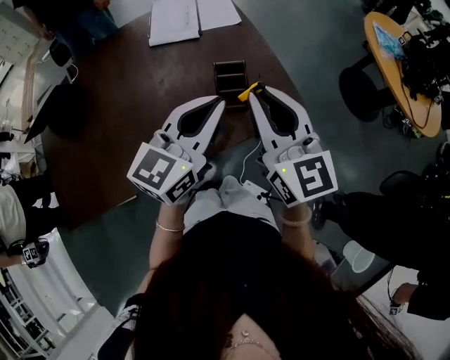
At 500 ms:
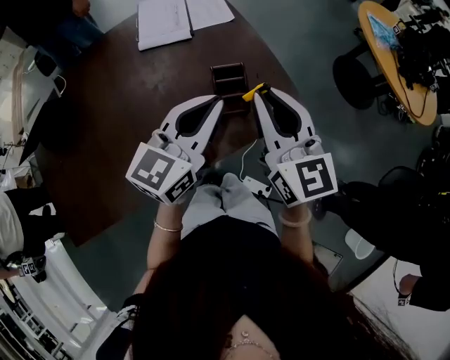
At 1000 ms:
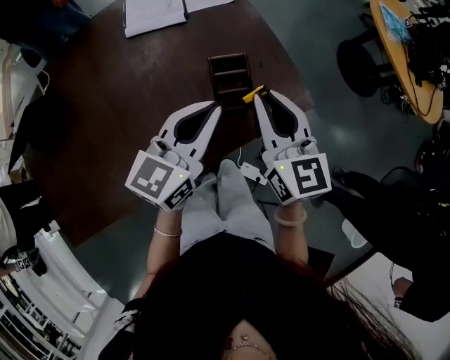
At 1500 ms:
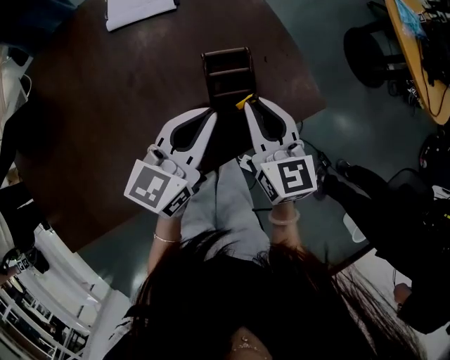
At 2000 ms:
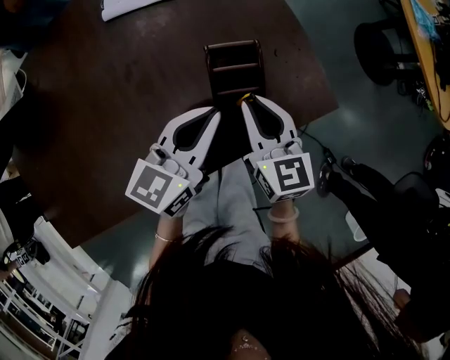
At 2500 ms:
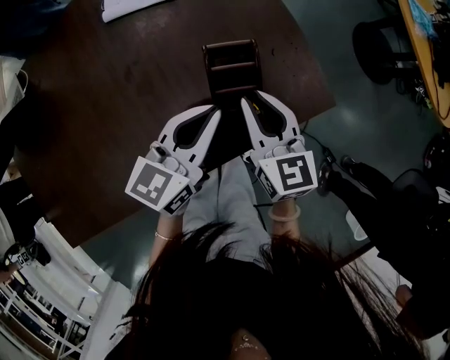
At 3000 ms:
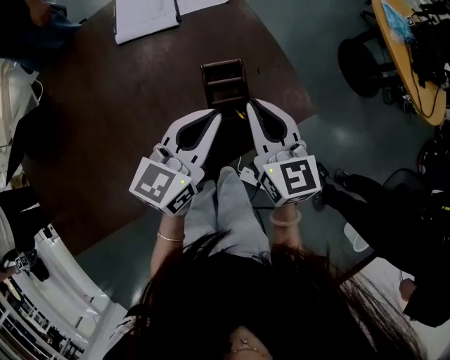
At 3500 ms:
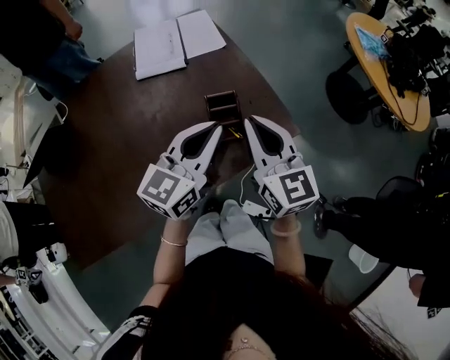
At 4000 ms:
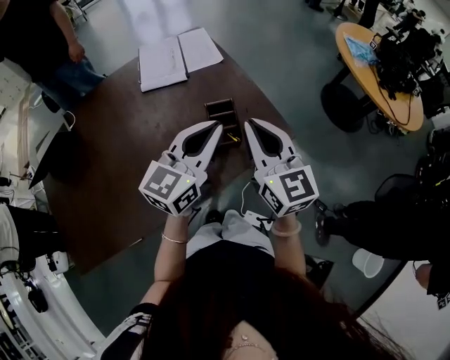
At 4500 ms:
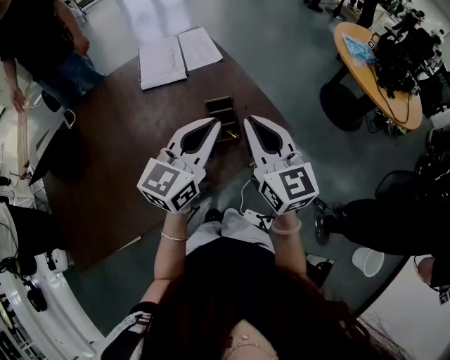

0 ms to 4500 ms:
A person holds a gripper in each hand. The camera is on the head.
0 ms to 2000 ms: The left gripper travels downward and forward by roughly 20 cm. Meanwhile the right gripper heads downward, covering some 25 cm, and turns by some 20 degrees.
2000 ms to 4500 ms: The two grippers go some 20 cm upward. The left gripper turns by some 20 degrees. Meanwhile the right gripper changes its angle by roughly 20 degrees.

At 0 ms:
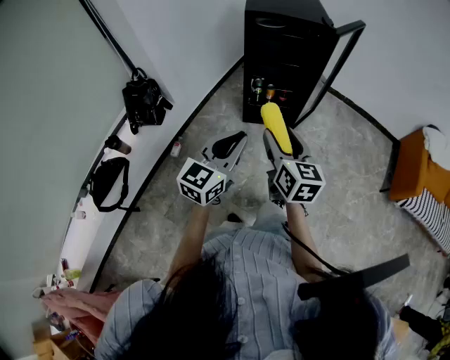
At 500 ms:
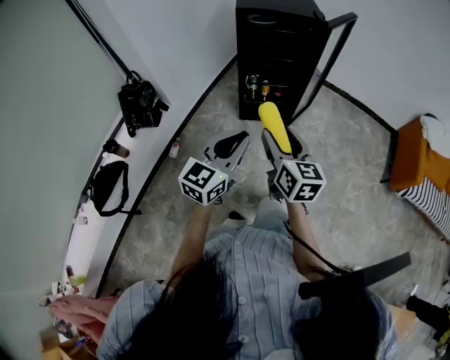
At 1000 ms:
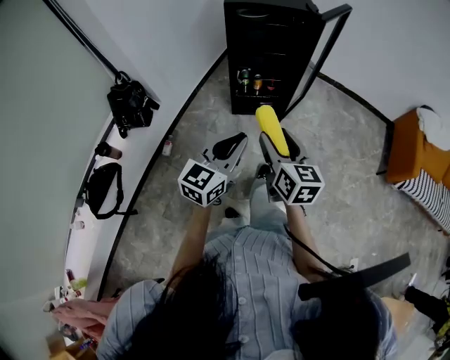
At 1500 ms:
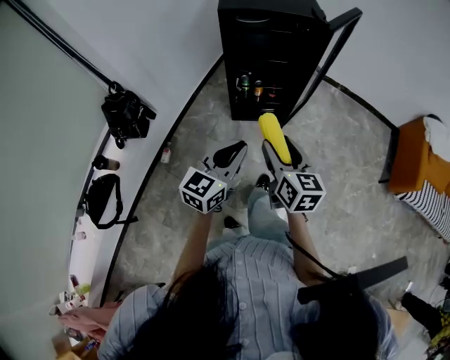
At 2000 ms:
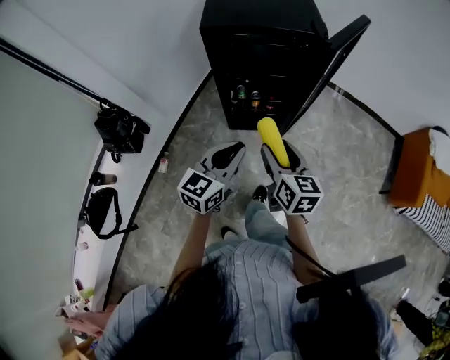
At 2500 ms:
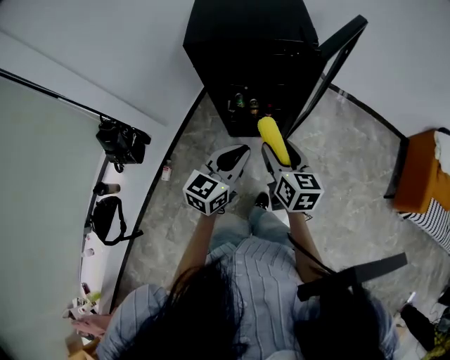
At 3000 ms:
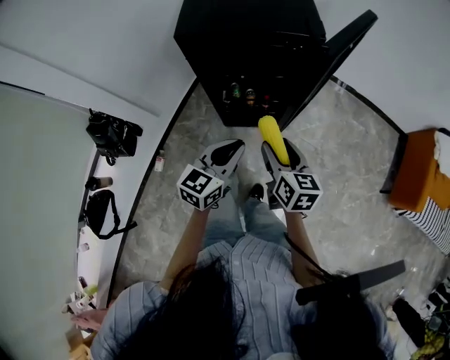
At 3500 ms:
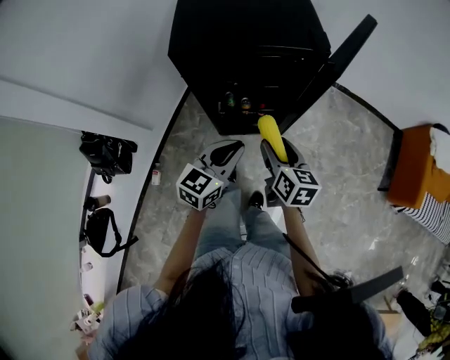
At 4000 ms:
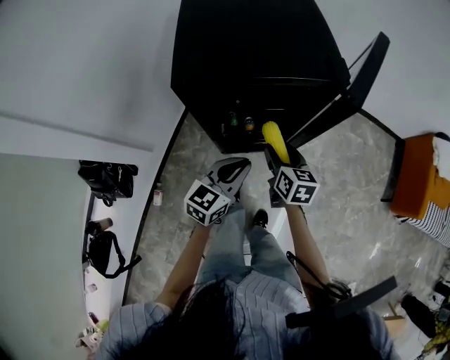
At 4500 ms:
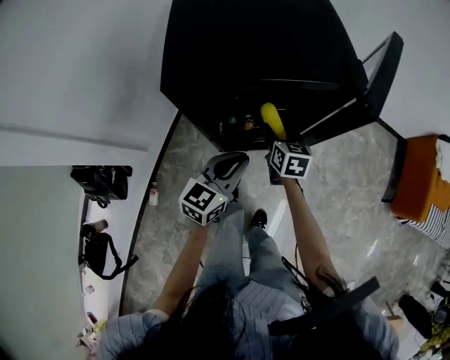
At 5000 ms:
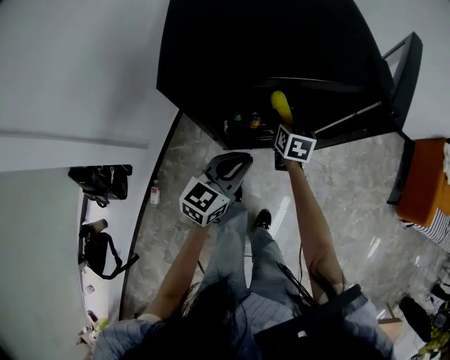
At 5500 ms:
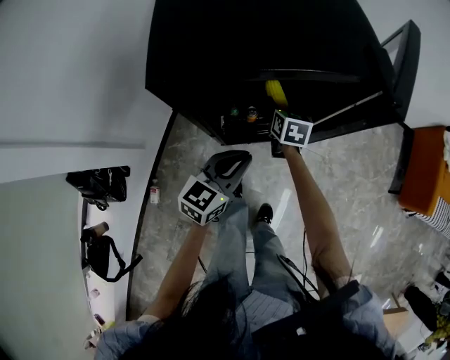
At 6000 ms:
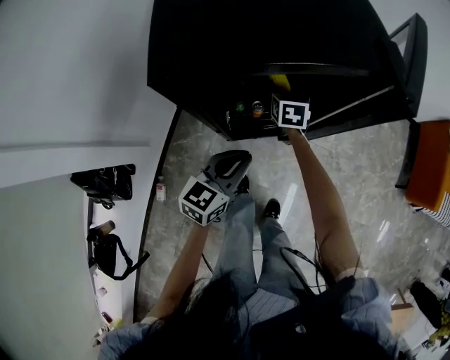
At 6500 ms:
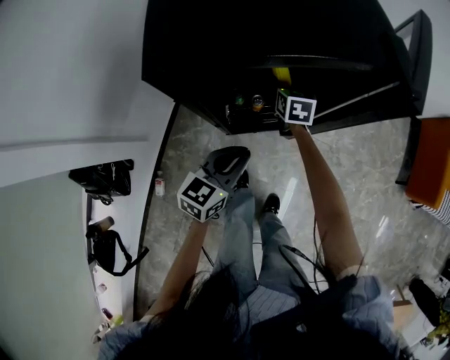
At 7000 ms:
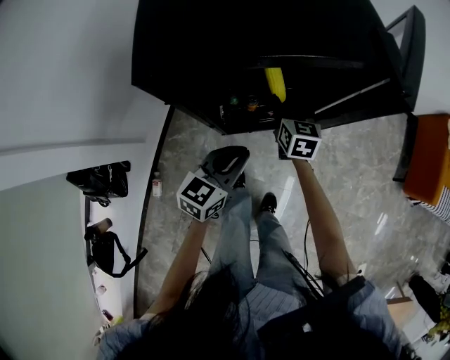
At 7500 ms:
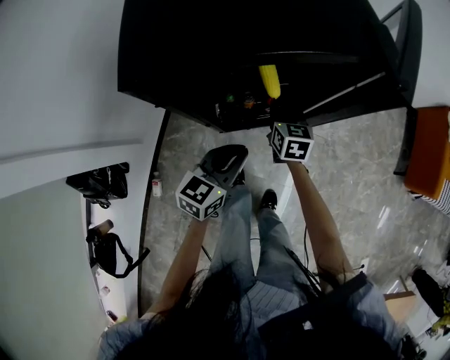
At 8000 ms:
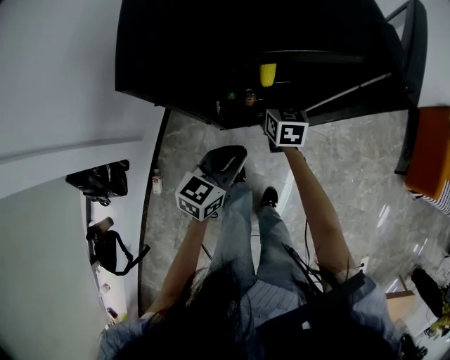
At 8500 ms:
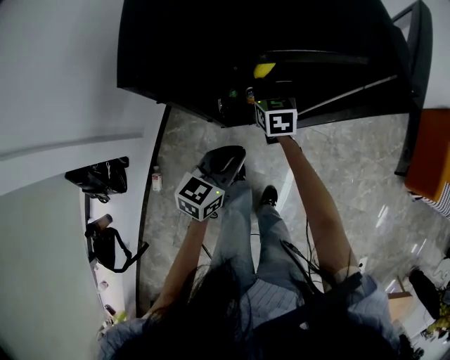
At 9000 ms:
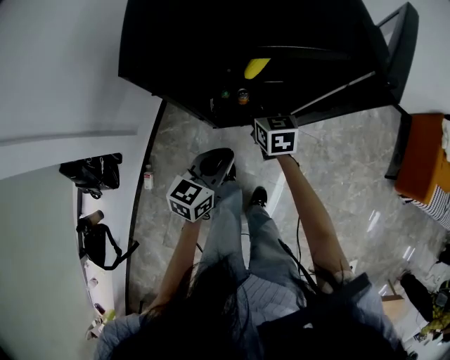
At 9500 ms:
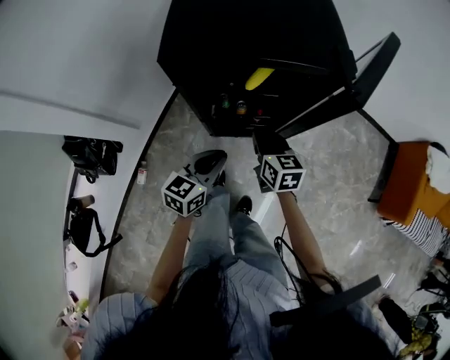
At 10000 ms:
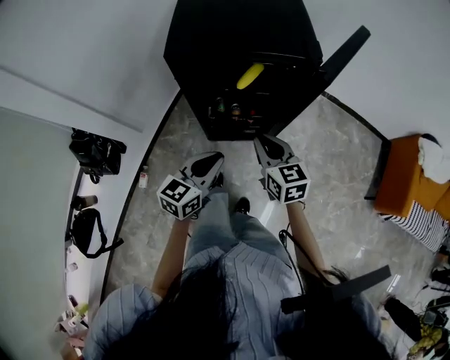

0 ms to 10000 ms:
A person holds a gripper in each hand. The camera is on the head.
0 ms to 2000 ms: Both grippers travel together forward, roughly 25 cm.
2000 ms to 4000 ms: The grippers both shift forward and downward by some 25 cm.
4000 ms to 6000 ms: The right gripper moves forward, downward and to the left, approximately 25 cm. The left gripper goes roughly 10 cm downward.
6000 ms to 8000 ms: The right gripper heads backward, covering approximately 5 cm, and closes.
8000 ms to 10000 ms: The right gripper travels backward and upward by approximately 30 cm, and rotates some 20 degrees. The left gripper moves upward and backward, roughly 20 cm.

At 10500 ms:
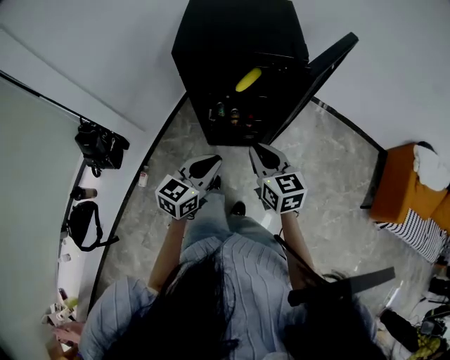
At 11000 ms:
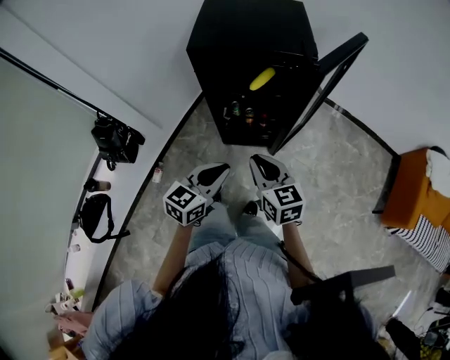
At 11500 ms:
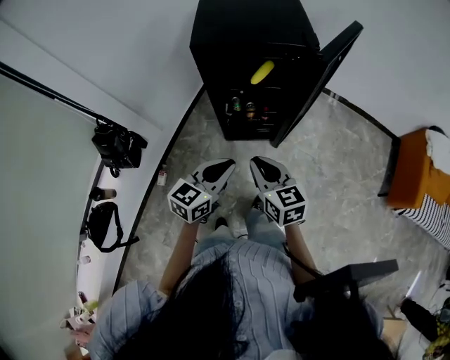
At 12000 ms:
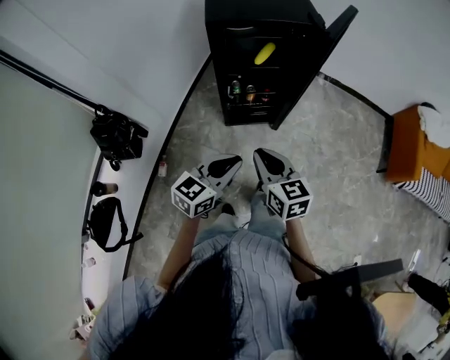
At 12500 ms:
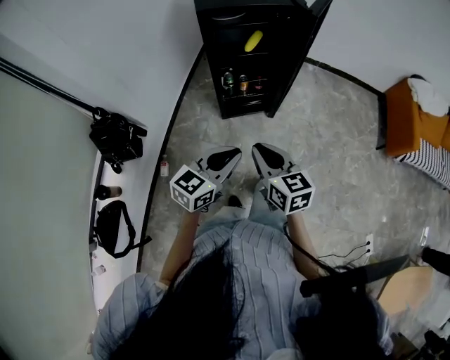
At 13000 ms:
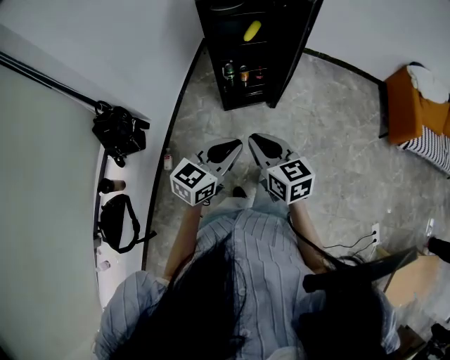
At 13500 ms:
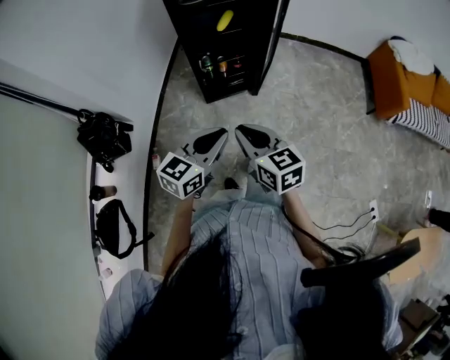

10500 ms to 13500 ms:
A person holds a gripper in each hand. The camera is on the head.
10500 ms to 12000 ms: The grippers both shift backward and to the left by roughly 20 cm.
12000 ms to 13500 ms: The two grippers go some 10 cm backward.

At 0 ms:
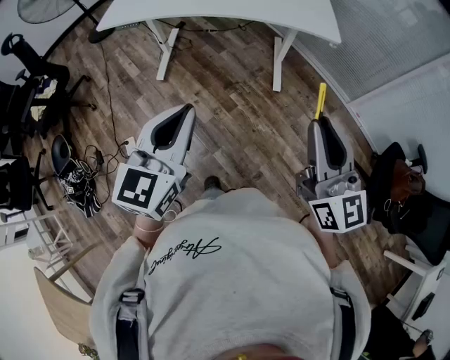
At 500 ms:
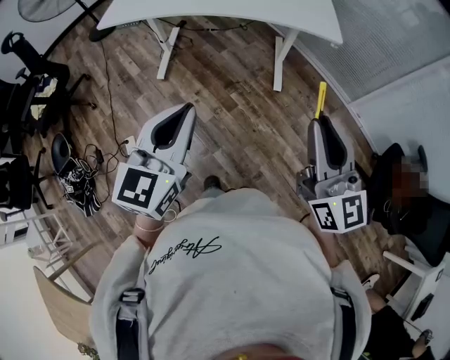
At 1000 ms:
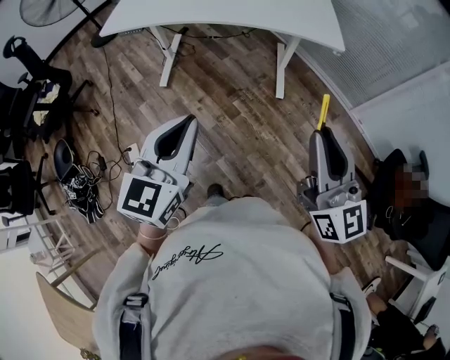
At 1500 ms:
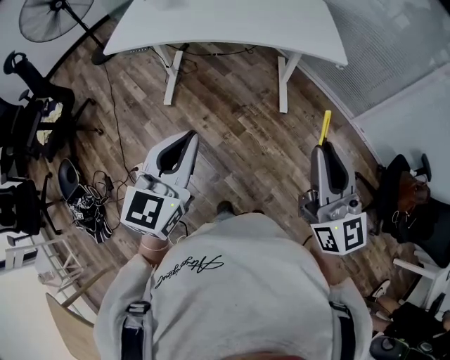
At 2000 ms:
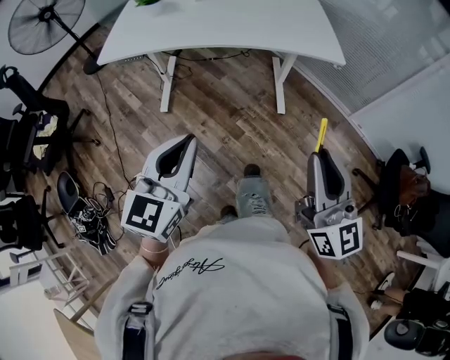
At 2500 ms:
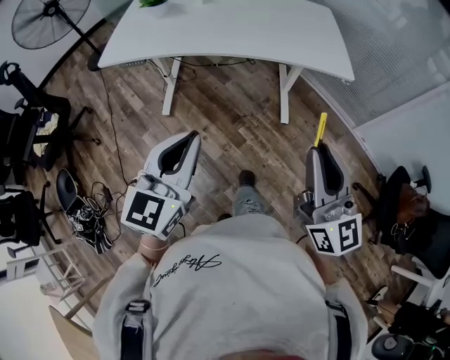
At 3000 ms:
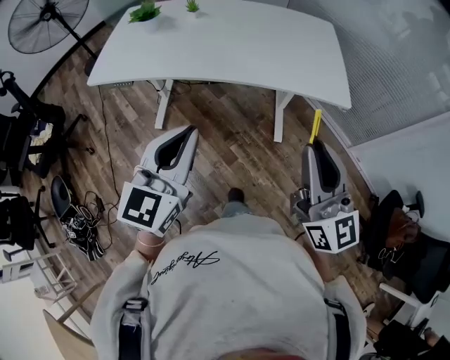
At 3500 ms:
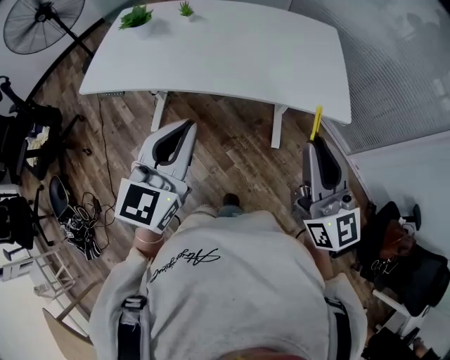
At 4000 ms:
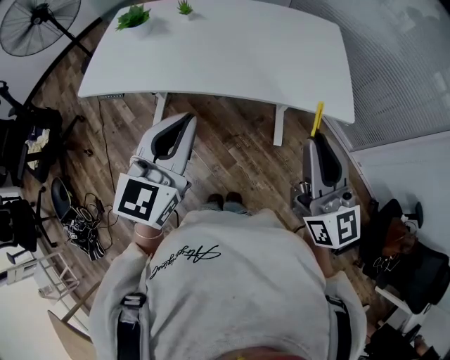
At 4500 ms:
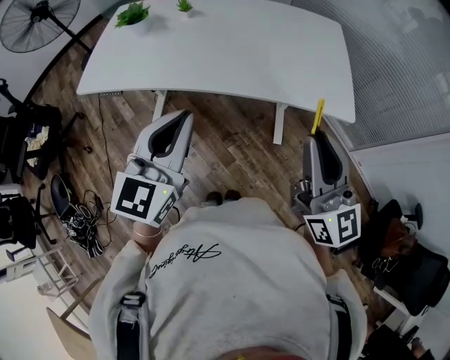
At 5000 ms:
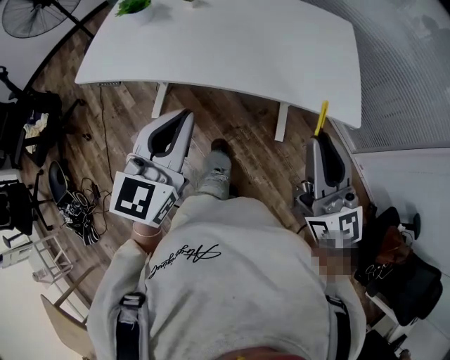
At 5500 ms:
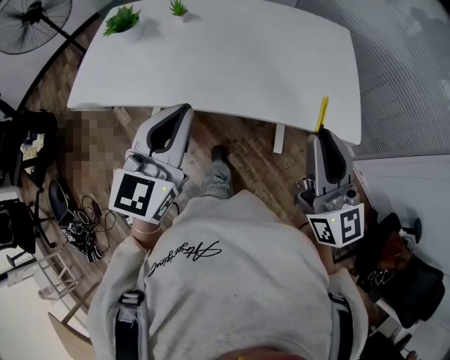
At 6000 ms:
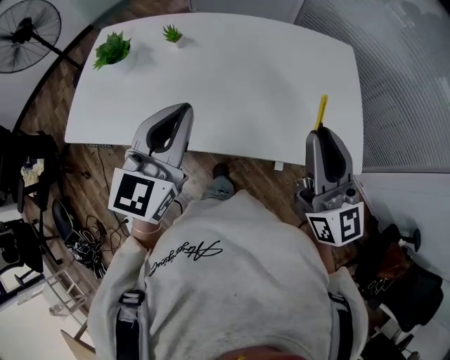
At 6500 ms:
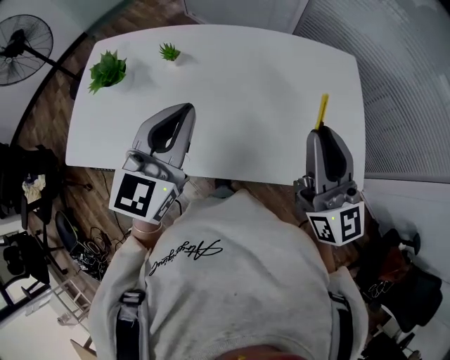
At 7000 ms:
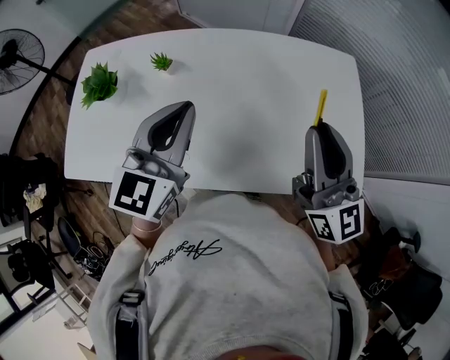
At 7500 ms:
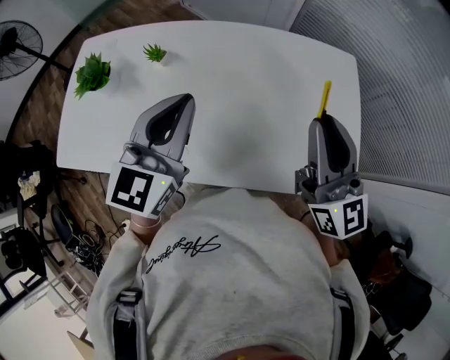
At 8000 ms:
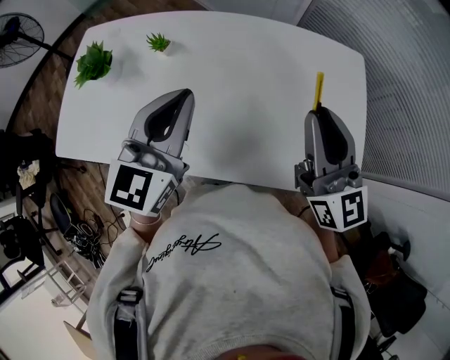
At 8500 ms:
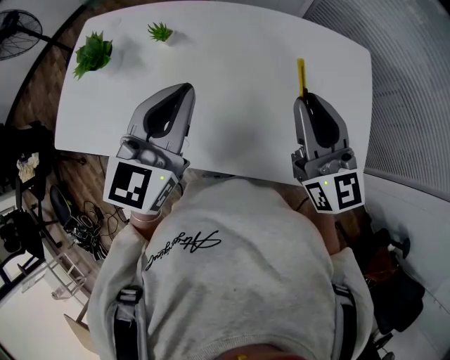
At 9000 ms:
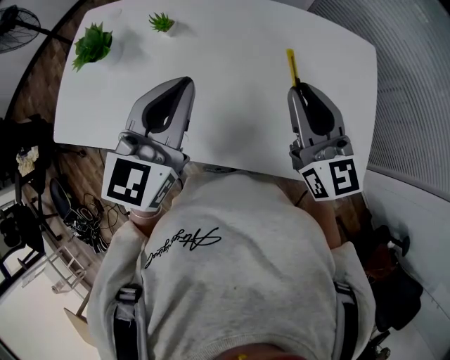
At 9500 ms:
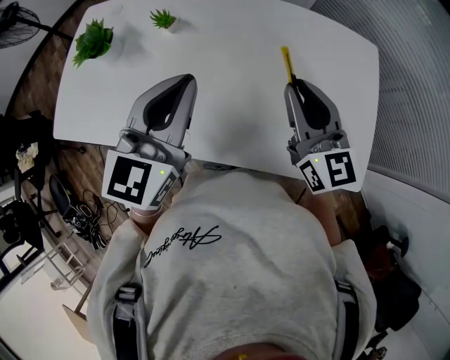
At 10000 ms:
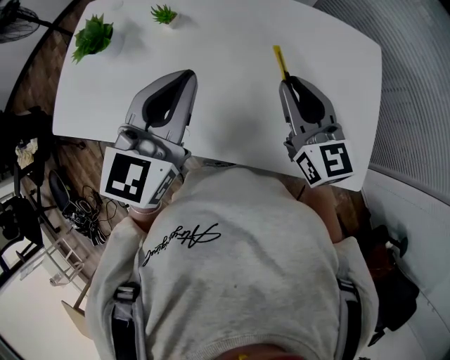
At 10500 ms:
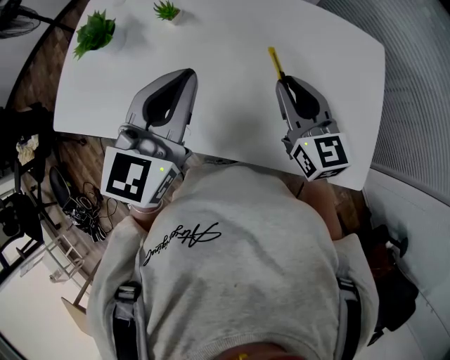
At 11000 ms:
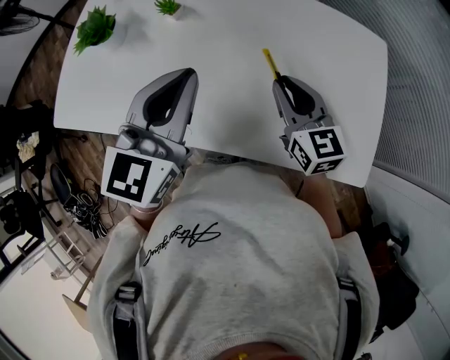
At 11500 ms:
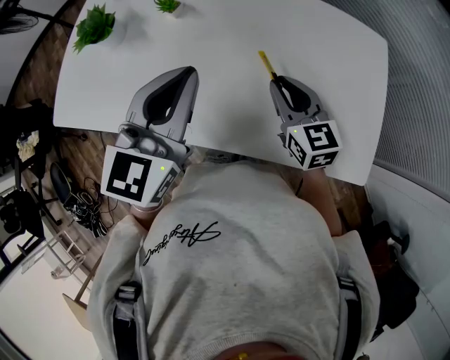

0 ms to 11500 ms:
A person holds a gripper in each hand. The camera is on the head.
0 ms to 2000 ms: The left gripper travels to the left and forward by about 10 cm, while the right gripper shifts some 10 cm to the left.
2000 ms to 4000 ms: Both grippers move forward, some 30 cm.
4000 ms to 6000 ms: The grippers both shift forward by some 25 cm.
6000 ms to 7500 ms: The grippers both shift forward by approximately 15 cm.
7500 ms to 9500 ms: The right gripper travels downward and to the left by some 10 cm.
9500 ms to 11500 ms: The right gripper moves downward, about 10 cm.
